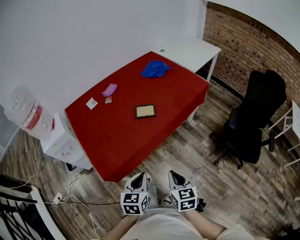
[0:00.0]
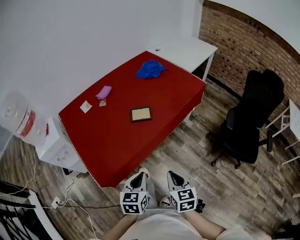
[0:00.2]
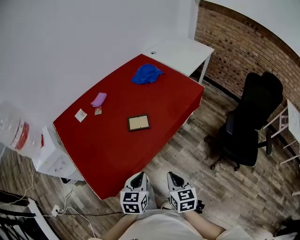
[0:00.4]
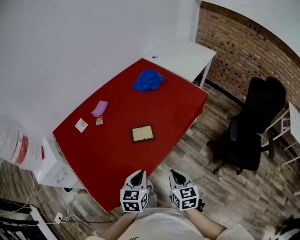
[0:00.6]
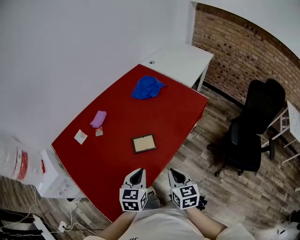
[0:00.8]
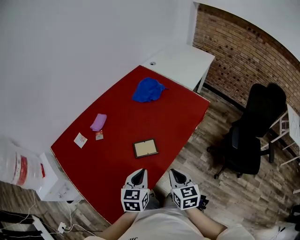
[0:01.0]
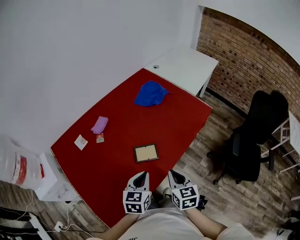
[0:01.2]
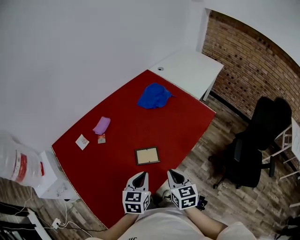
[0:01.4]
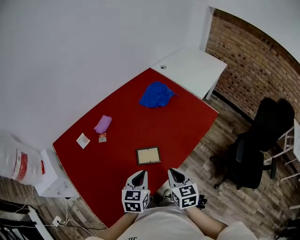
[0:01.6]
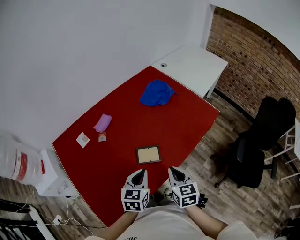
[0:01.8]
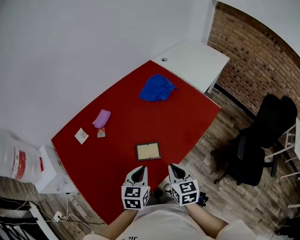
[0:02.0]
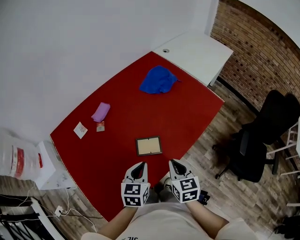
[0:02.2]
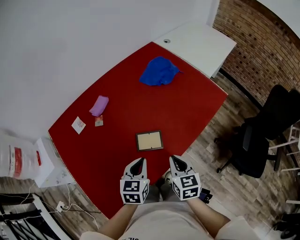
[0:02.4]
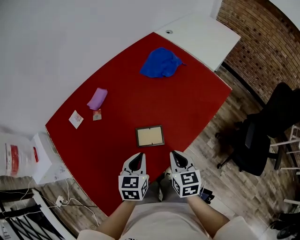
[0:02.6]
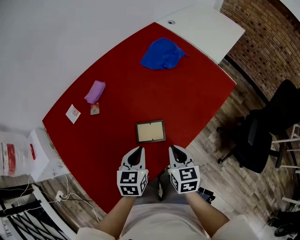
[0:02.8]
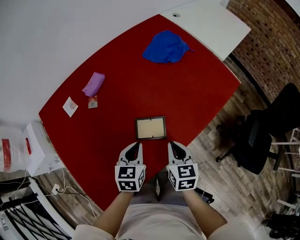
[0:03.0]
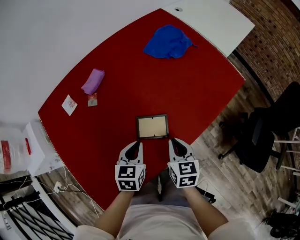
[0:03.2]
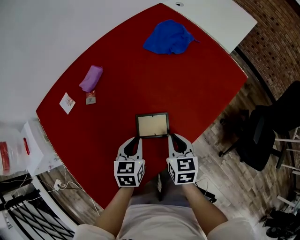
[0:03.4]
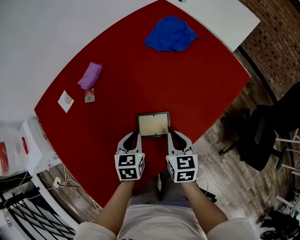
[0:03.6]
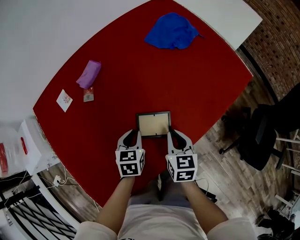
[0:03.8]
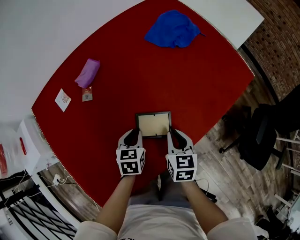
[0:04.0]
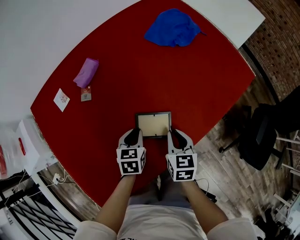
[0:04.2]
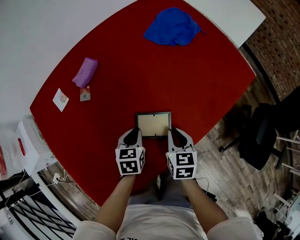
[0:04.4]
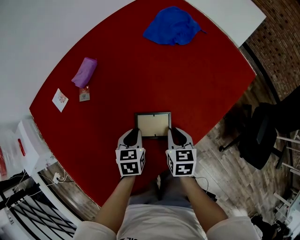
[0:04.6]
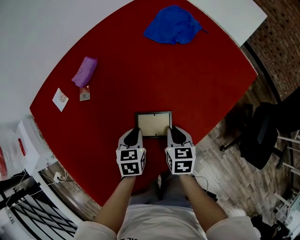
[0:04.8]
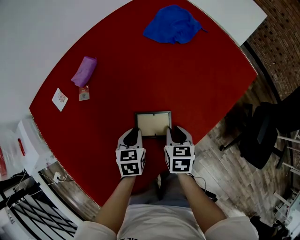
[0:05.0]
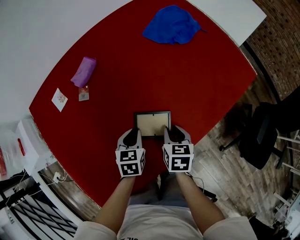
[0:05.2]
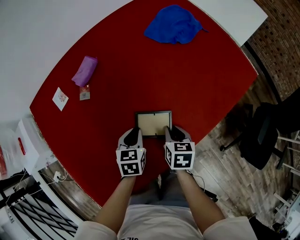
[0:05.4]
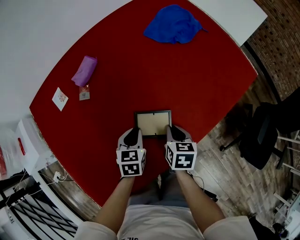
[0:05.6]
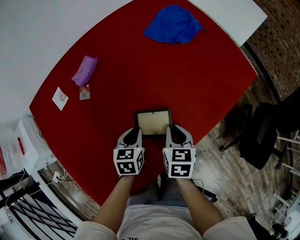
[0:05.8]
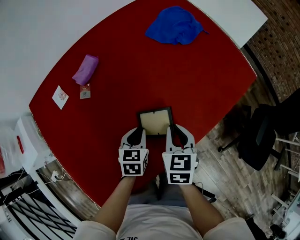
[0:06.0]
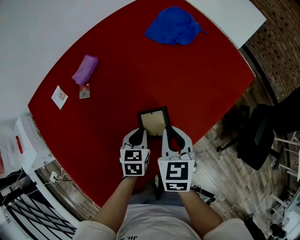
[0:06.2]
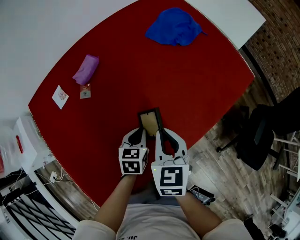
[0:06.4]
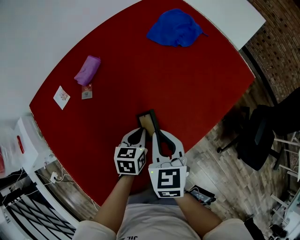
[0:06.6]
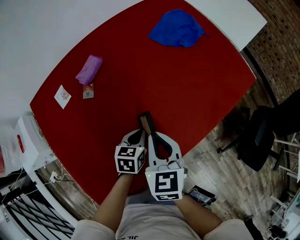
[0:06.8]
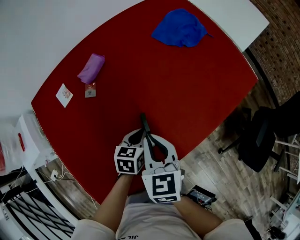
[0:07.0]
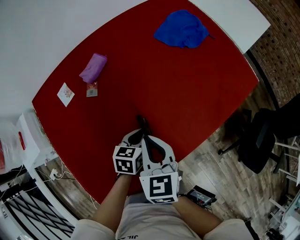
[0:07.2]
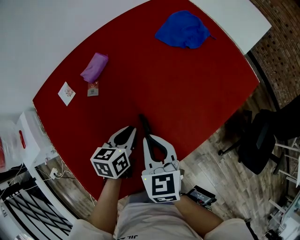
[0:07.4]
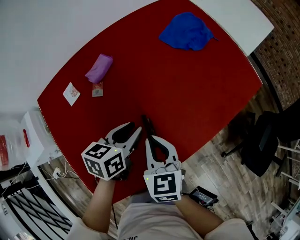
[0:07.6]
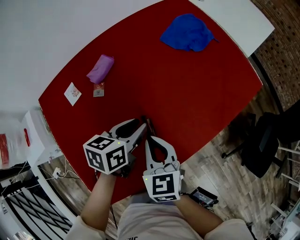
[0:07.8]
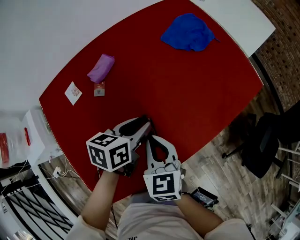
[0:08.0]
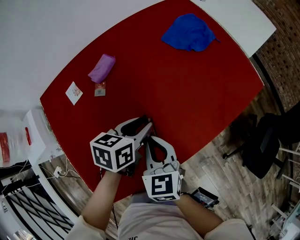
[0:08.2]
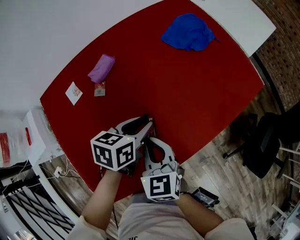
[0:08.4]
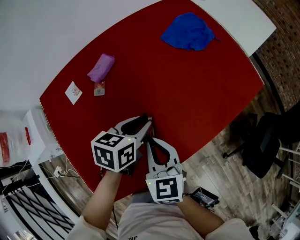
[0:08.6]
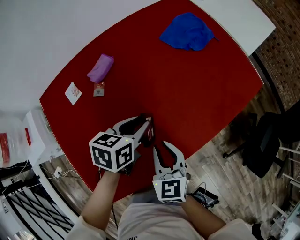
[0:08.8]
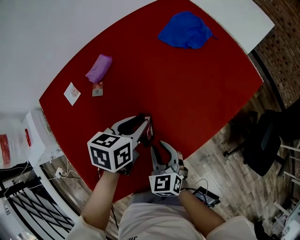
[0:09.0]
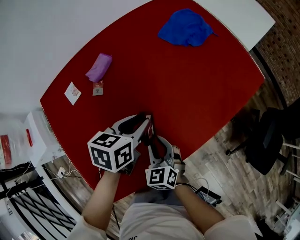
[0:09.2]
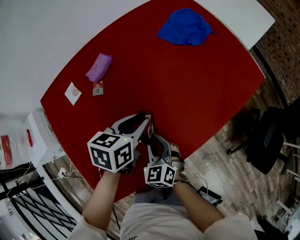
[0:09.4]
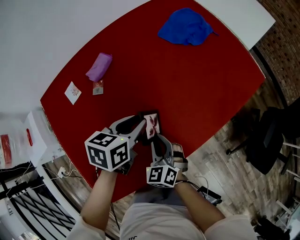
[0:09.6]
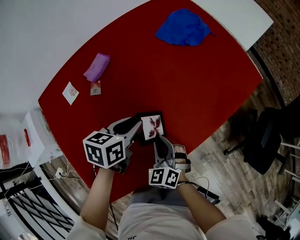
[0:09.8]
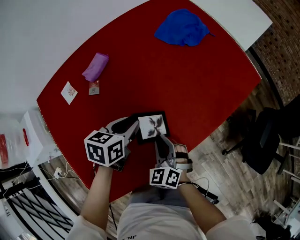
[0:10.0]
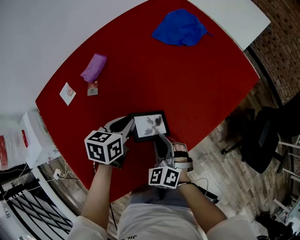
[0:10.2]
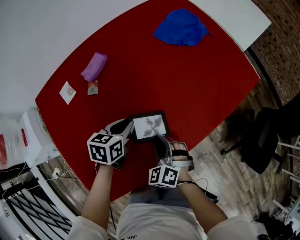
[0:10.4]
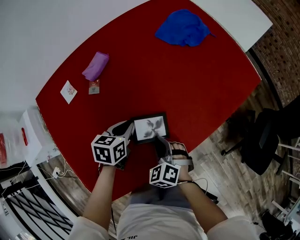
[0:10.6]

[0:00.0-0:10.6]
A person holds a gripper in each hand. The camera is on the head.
0:00.0 to 0:01.6: The grippers both shift forward by approximately 35 cm.
0:01.6 to 0:03.0: Both grippers move downward and forward, some 15 cm.
0:03.0 to 0:04.6: Both grippers travel together downward and forward, roughly 10 cm.
0:04.6 to 0:06.0: The right gripper travels upward by roughly 5 cm.
0:06.0 to 0:07.6: The left gripper moves upward, some 15 cm, and swivels approximately 20 degrees, while the right gripper moves to the left and upward, approximately 15 cm.
0:07.6 to 0:09.0: The right gripper heads downward, covering about 10 cm.
0:09.0 to 0:10.6: The right gripper shifts approximately 5 cm downward, and turns by approximately 30 degrees. The left gripper travels downward by roughly 10 cm.

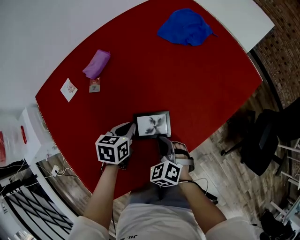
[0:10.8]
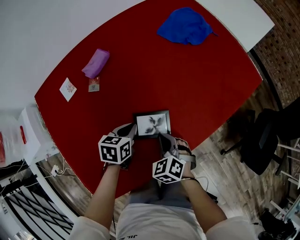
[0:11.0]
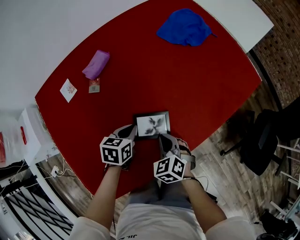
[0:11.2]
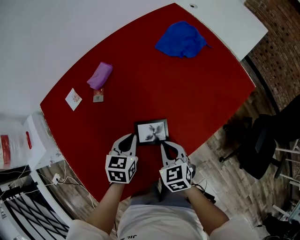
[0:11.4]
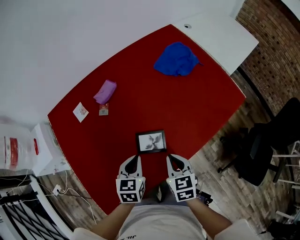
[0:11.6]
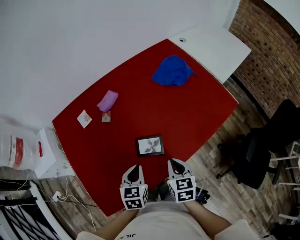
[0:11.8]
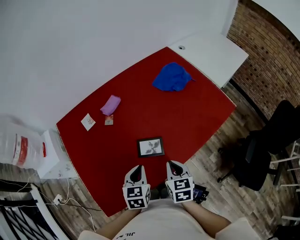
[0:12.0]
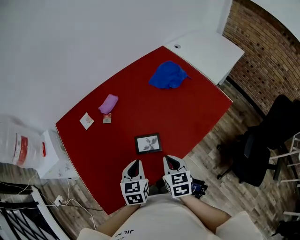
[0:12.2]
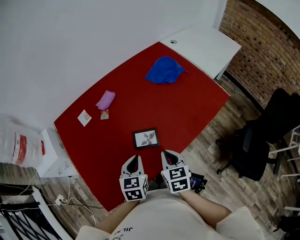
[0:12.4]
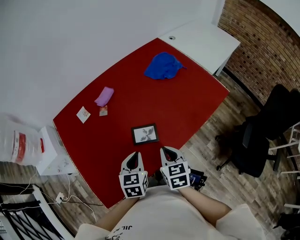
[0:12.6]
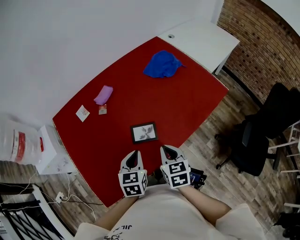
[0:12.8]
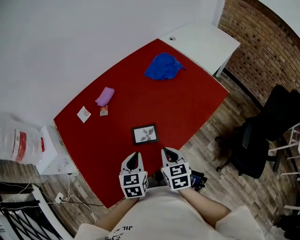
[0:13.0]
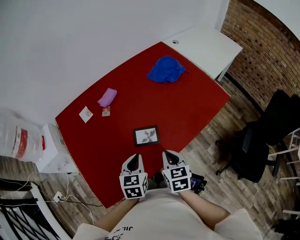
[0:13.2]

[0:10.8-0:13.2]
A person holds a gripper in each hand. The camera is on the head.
0:10.8 to 0:12.0: The right gripper shifts about 20 cm upward and to the right, and rotates around the line of its fingers by about 40 degrees, clockwise from behind, while the left gripper goes some 20 cm upward and backward, and swivels about 20 degrees.
0:12.0 to 0:13.2: There are only small adjustments of the grippers.

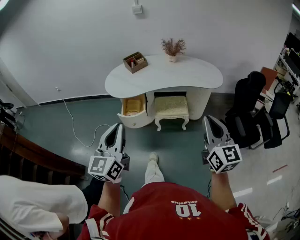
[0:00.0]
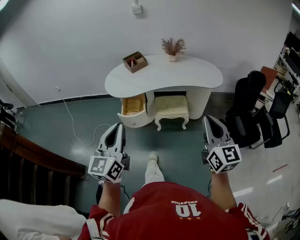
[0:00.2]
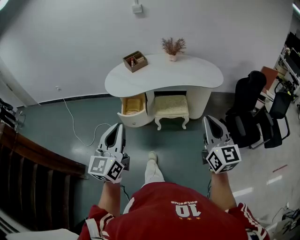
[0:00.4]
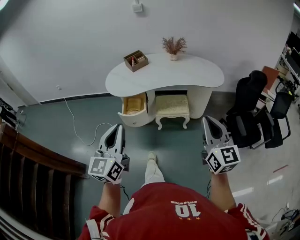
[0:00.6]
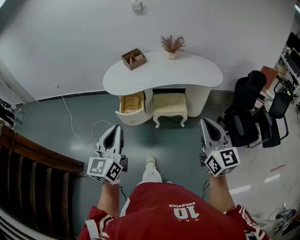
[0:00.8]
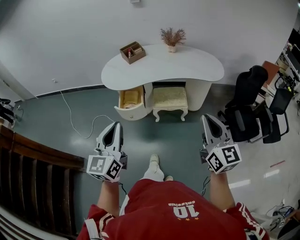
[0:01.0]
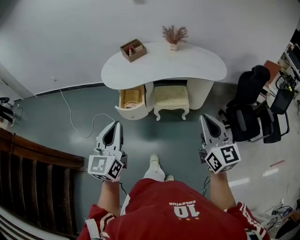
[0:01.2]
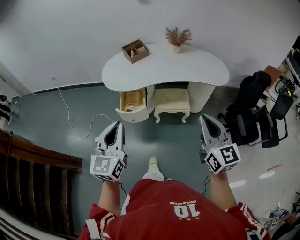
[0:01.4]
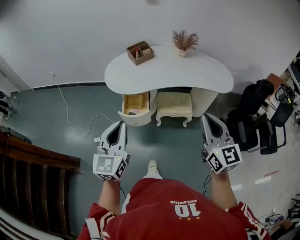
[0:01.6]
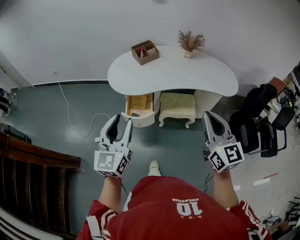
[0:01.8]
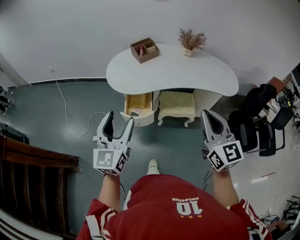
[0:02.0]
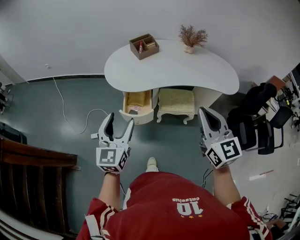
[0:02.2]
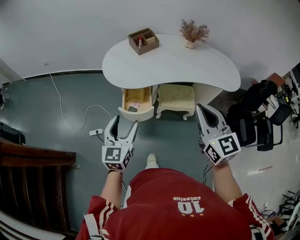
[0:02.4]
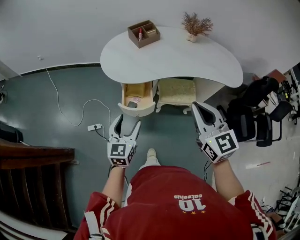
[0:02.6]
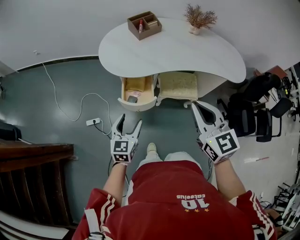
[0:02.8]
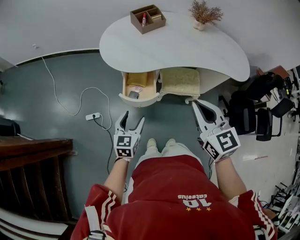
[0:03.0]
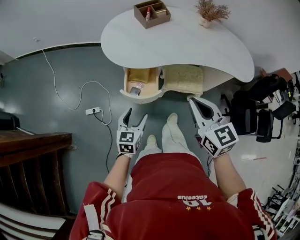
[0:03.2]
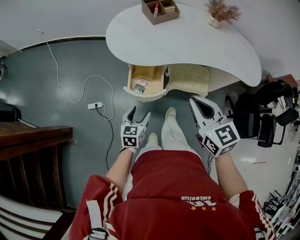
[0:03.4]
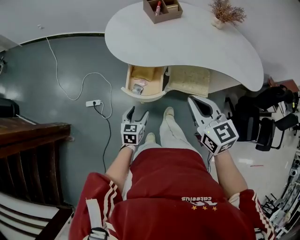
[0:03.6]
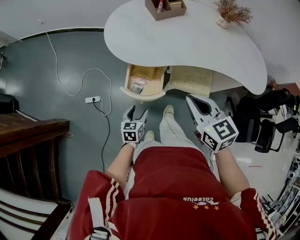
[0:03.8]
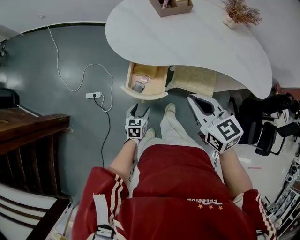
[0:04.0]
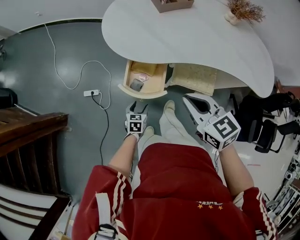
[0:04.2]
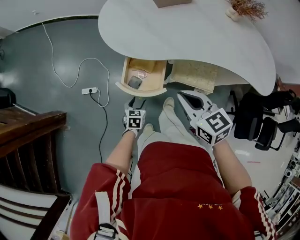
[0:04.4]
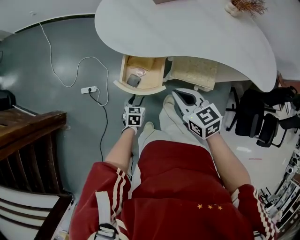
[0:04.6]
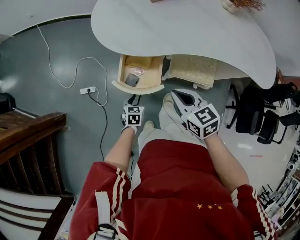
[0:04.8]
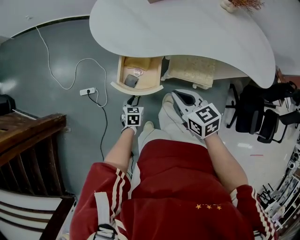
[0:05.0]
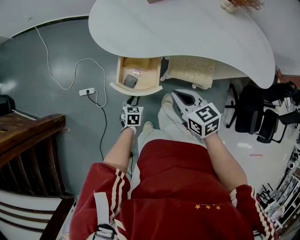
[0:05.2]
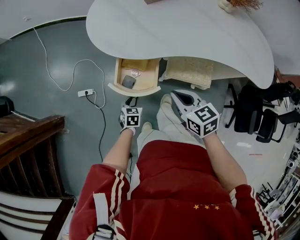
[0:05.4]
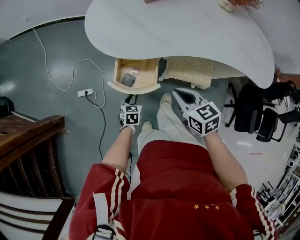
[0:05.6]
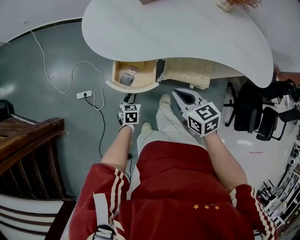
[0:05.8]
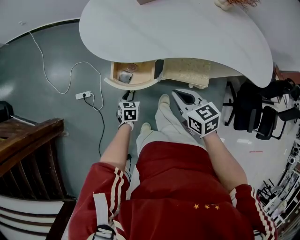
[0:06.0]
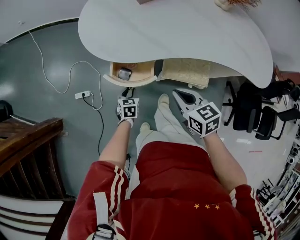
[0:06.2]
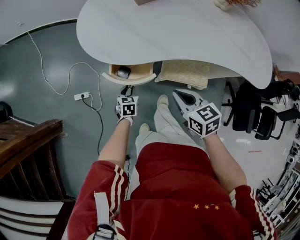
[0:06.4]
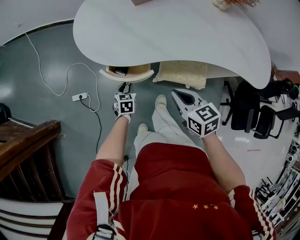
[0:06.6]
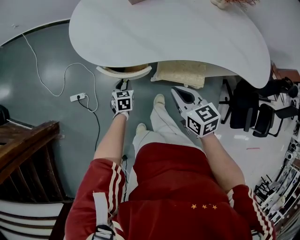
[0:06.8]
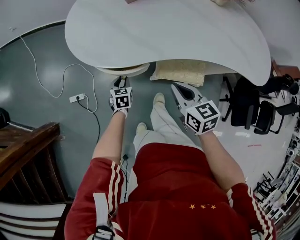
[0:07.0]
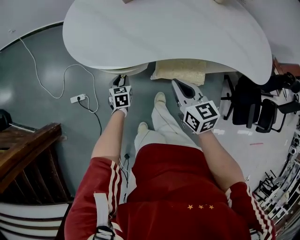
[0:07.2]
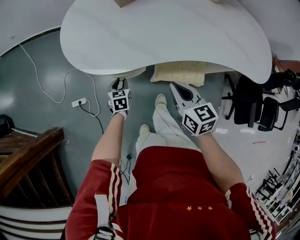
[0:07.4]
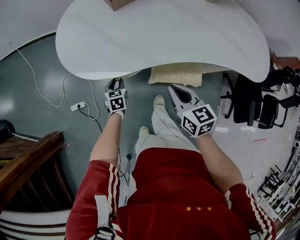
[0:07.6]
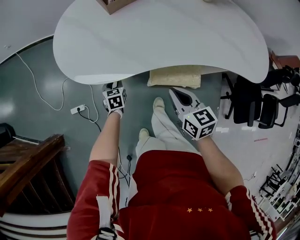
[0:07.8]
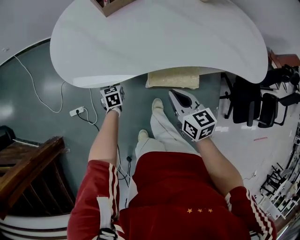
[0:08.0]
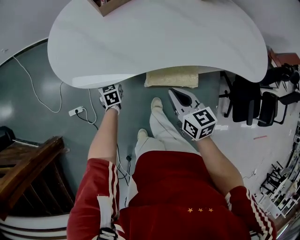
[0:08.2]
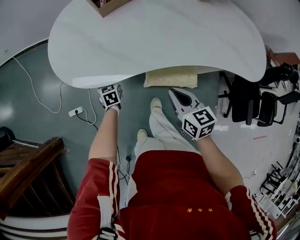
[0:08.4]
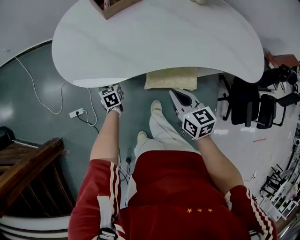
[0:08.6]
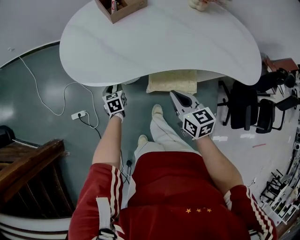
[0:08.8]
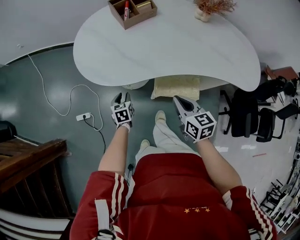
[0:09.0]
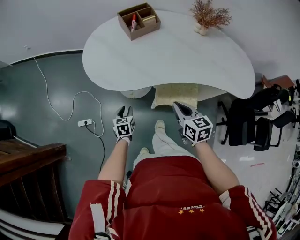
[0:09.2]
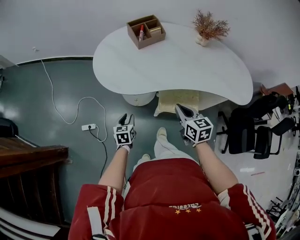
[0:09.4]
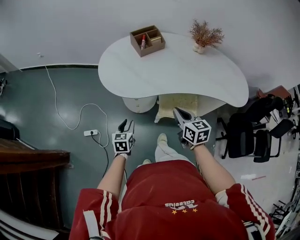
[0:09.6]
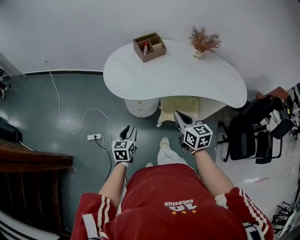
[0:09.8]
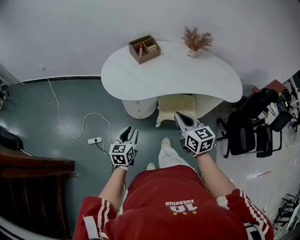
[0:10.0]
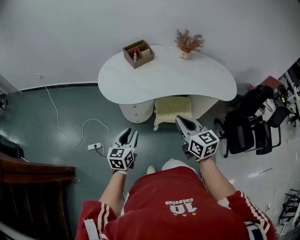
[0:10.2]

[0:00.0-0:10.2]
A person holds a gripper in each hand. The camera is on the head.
0:00.0 to 0:01.4: The grippers both shift forward by about 10 cm.
0:01.4 to 0:03.0: The right gripper heads forward, to the left and downward, covering some 25 cm, and swivels roughly 20 degrees, while the left gripper moves downward and forward, roughly 35 cm, turns by some 30 degrees, and opens.
0:03.0 to 0:04.4: The left gripper moves downward, approximately 30 cm, and turns by some 30 degrees, while the right gripper moves downward and forward, about 25 cm, and turns by some 30 degrees.
0:04.4 to 0:05.8: The right gripper shifts approximately 10 cm downward. Meanwhile the left gripper closes.
0:05.8 to 0:07.2: The left gripper moves forward, about 10 cm. Meanwhile the right gripper is displaced to the right and forward by approximately 10 cm.
0:08.8 to 0:10.2: Both grippers move upward and backward, roughly 35 cm. The left gripper swivels roughly 30 degrees.
